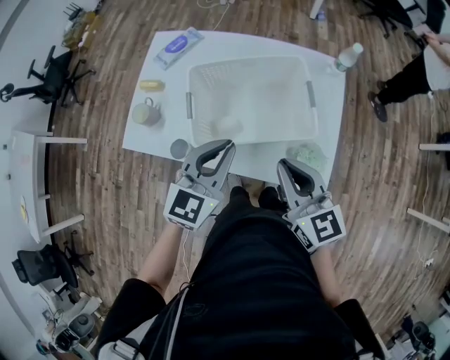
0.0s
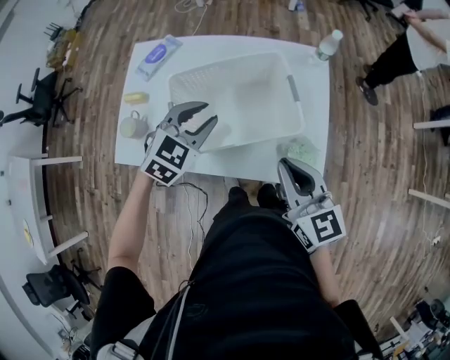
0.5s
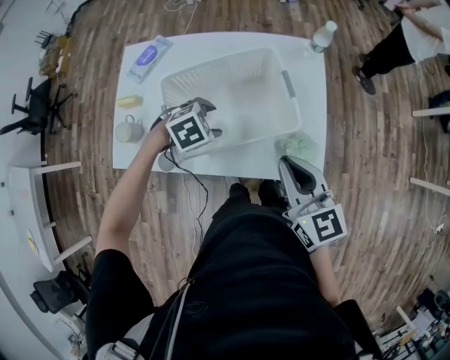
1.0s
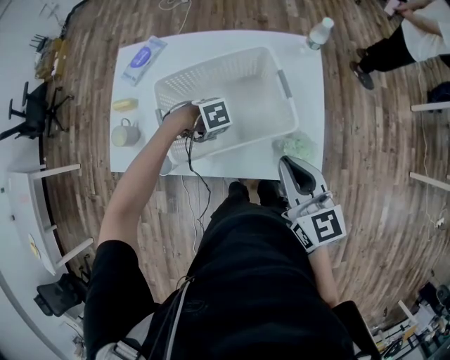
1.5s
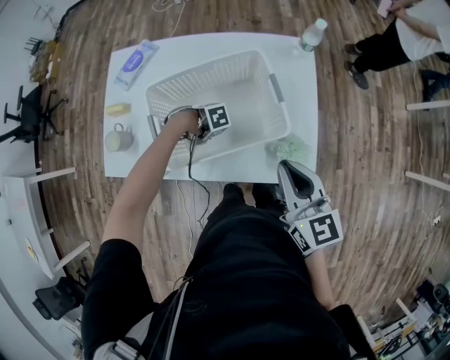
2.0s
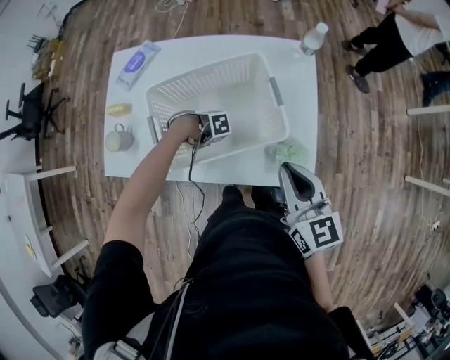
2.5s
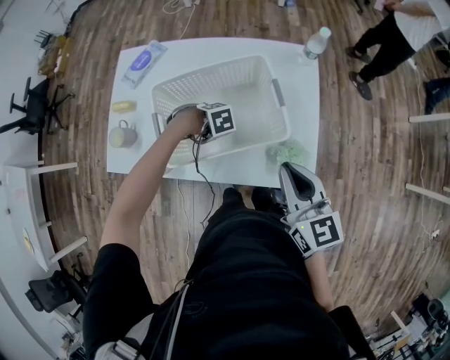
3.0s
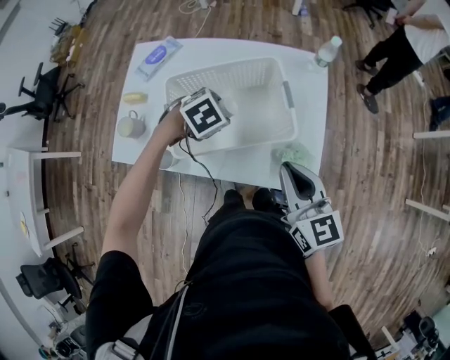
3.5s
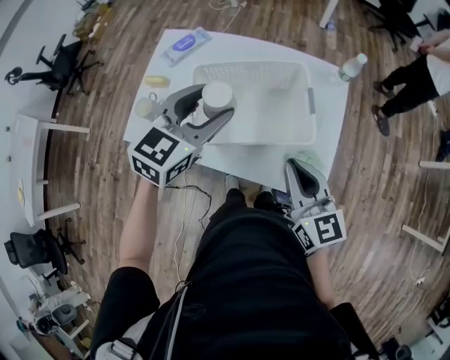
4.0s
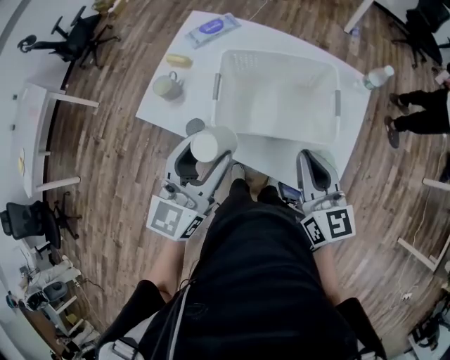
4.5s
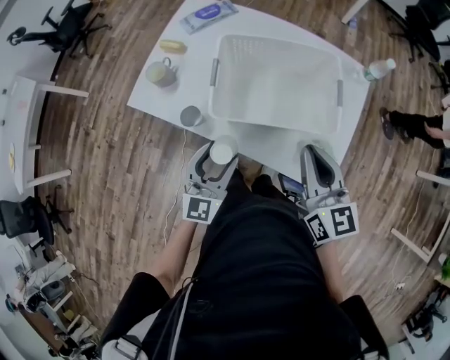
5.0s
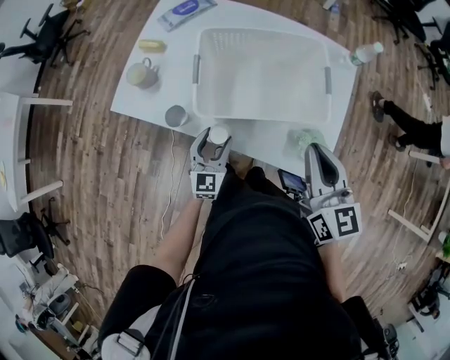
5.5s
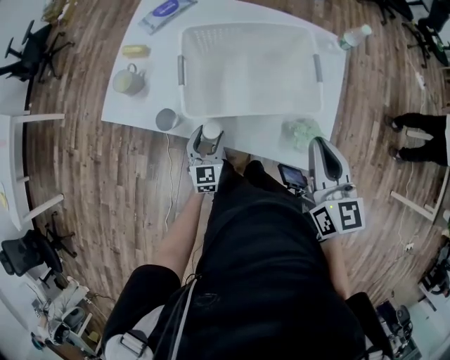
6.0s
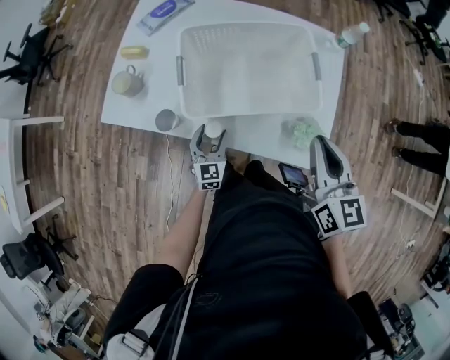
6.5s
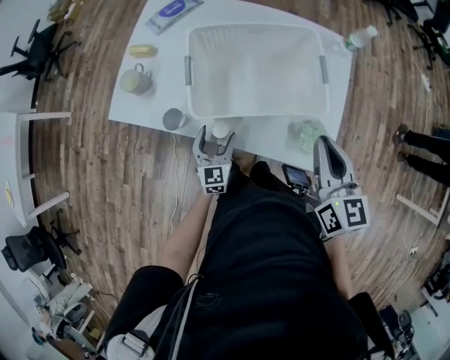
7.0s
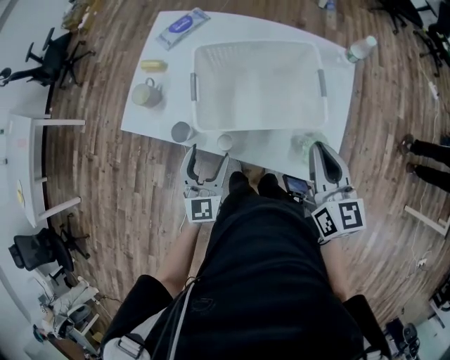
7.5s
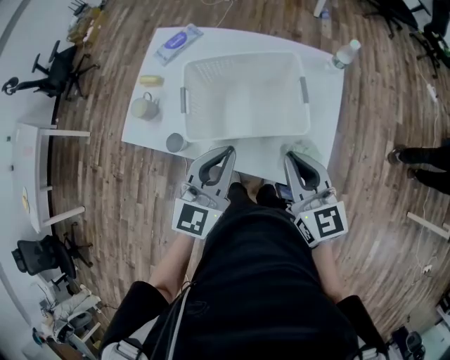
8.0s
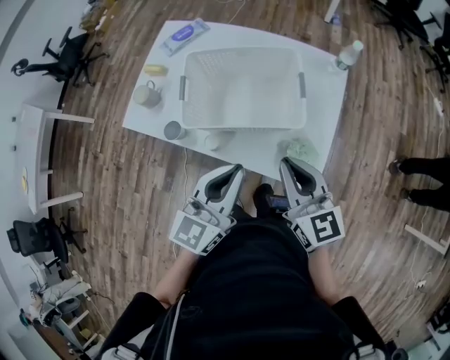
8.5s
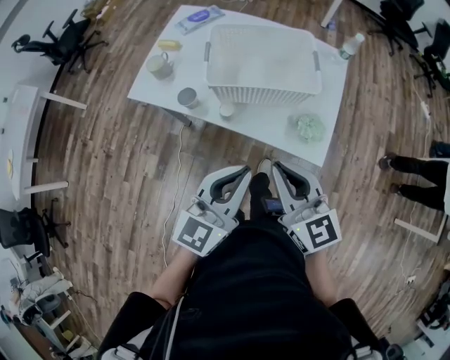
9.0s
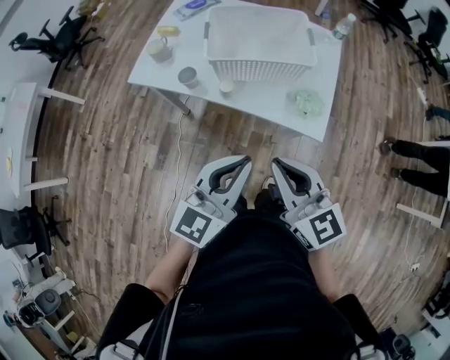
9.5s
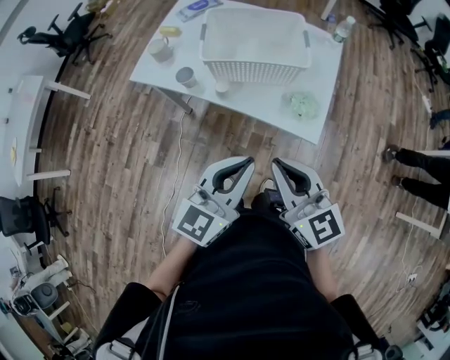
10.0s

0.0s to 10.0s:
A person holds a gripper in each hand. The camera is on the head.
0.0s to 2.0s: The left gripper heads downward, covering some 30 cm, tips its fingers downward by roughly 50 degrees, and opens its fingers; the right gripper changes place by some 5 cm.
2.0s to 4.0s: The left gripper is displaced upward by about 35 cm, and points its fingers some 50 degrees further upward.
4.0s to 6.0s: The left gripper travels downward by roughly 30 cm, and turns by roughly 30 degrees.
6.0s to 8.0s: The left gripper goes roughly 30 cm upward, changes its angle by some 20 degrees, and closes its fingers.
8.0s to 10.0s: The two grippers go approximately 25 cm backward.

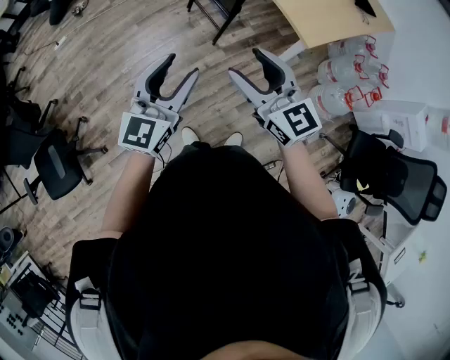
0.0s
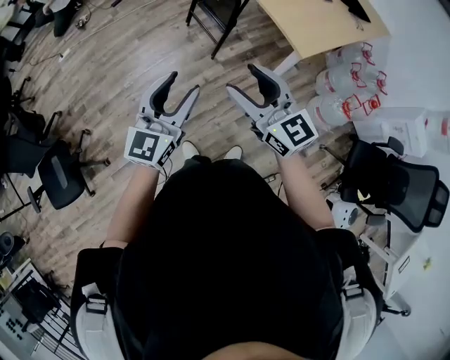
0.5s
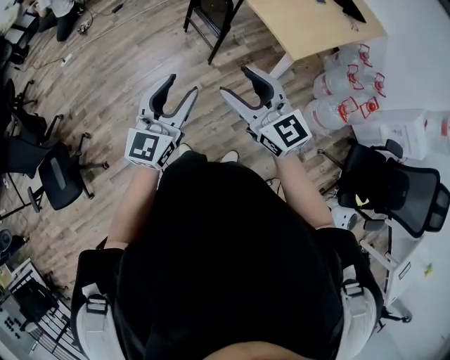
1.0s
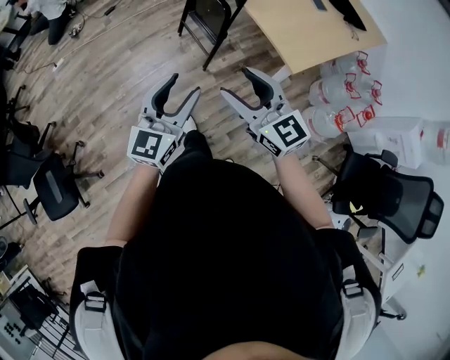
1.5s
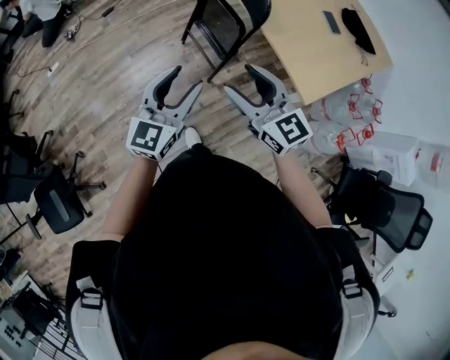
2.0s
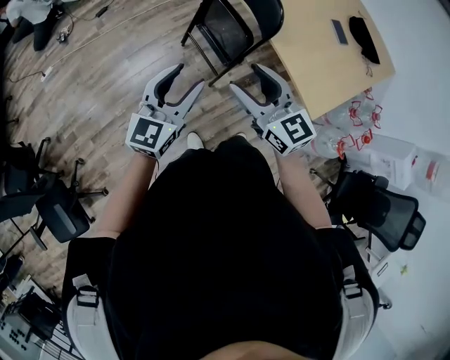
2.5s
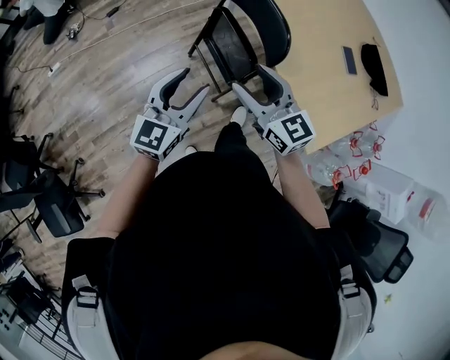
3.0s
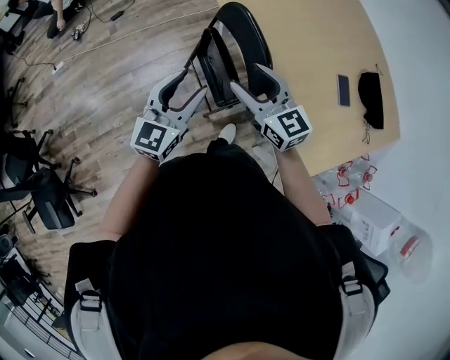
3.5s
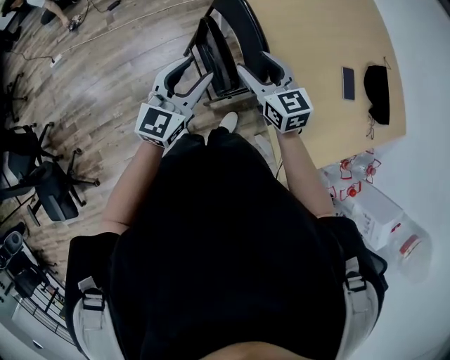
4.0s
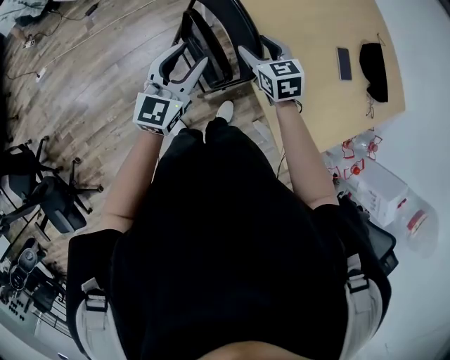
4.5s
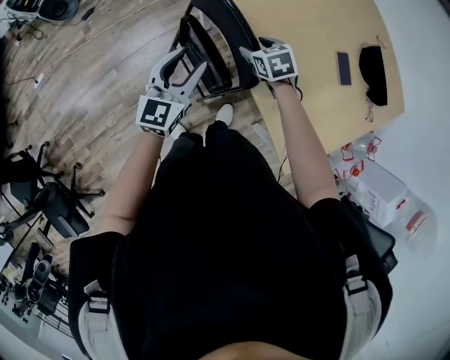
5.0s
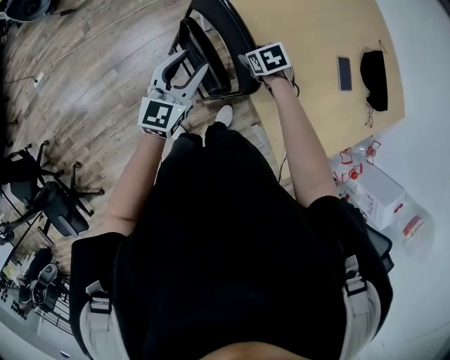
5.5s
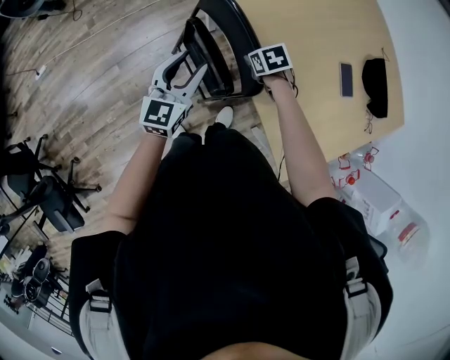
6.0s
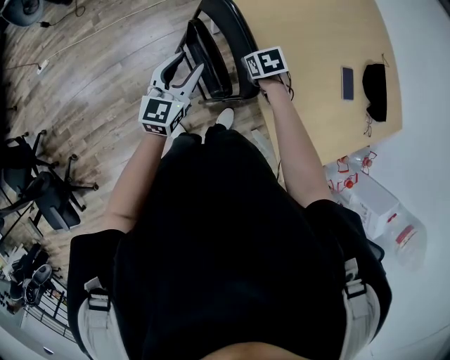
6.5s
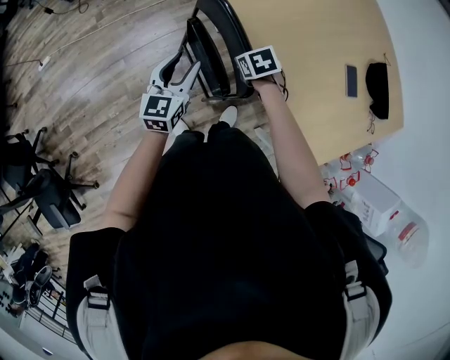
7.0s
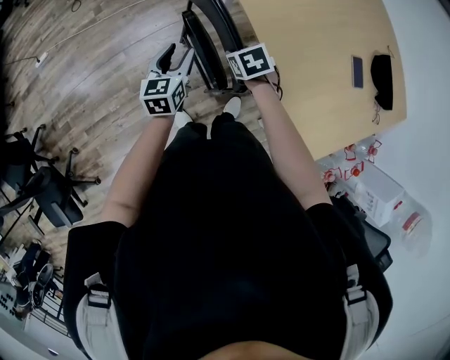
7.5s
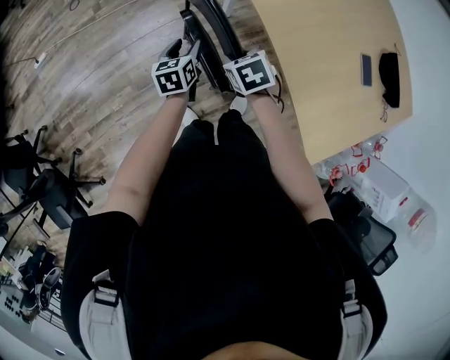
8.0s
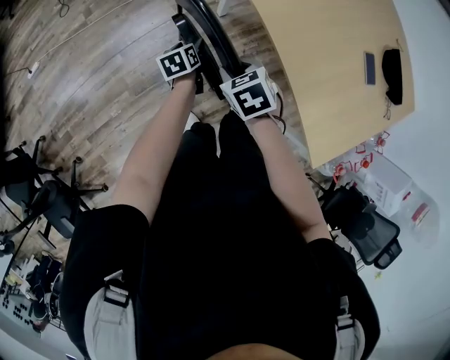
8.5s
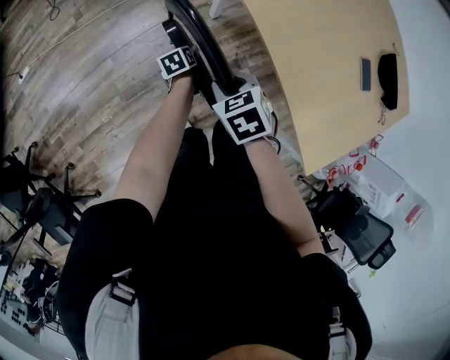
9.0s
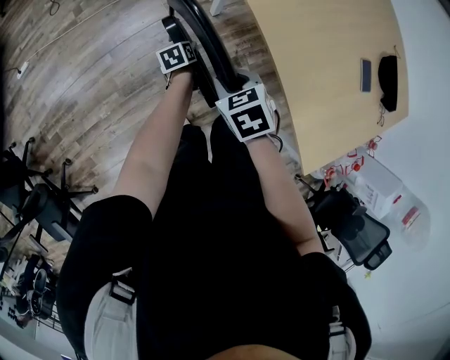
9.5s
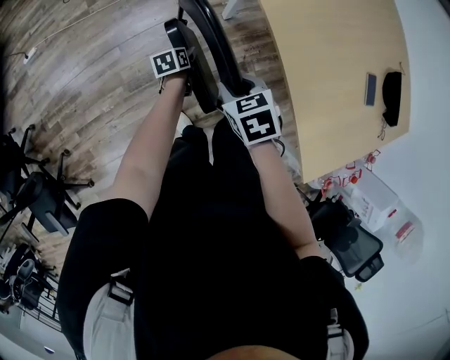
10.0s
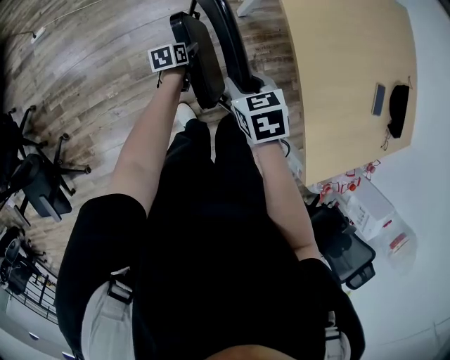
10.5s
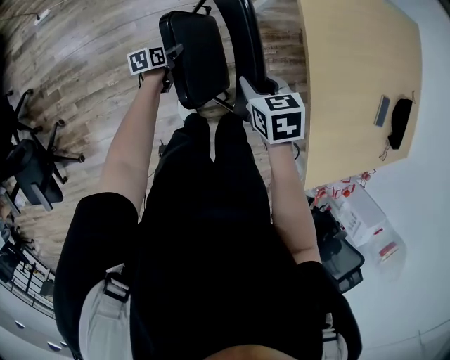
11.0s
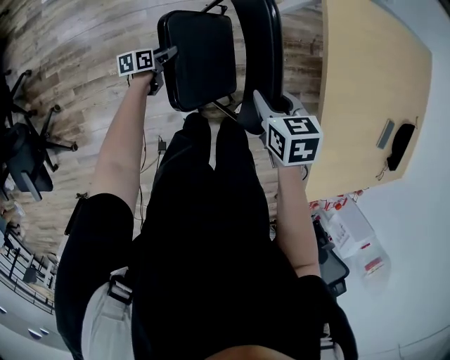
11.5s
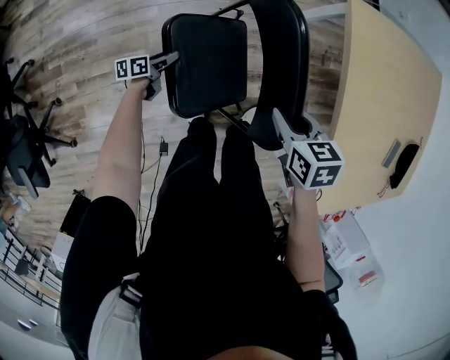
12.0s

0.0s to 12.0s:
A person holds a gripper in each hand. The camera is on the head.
0.0s to 2.0s: Both grippers travel together forward, roughly 25 cm.
2.0s to 4.0s: The two grippers travel together, forward, approximately 50 cm.
4.0s to 6.0s: The right gripper is displaced downward and forward by roughly 25 cm, points its fingers about 50 degrees further downward, and closes. The left gripper moves forward and downward, roughly 10 cm.
6.0s to 8.0s: The left gripper heads to the left and downward, covering roughly 25 cm, and rotates about 40 degrees, while the right gripper is displaced to the left by roughly 25 cm.
8.0s to 10.0s: The left gripper travels downward by roughly 20 cm, and changes its angle by approximately 30 degrees.
10.0s to 12.0s: The left gripper travels to the left and downward by approximately 30 cm, and changes its angle by some 20 degrees, while the right gripper shifts roughly 10 cm downward and to the left.

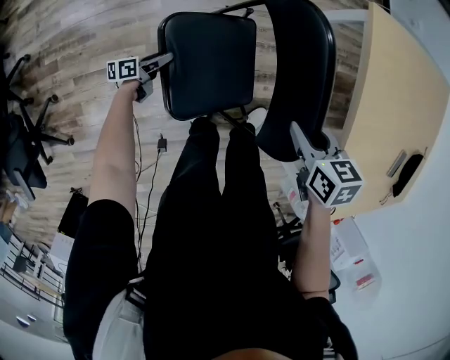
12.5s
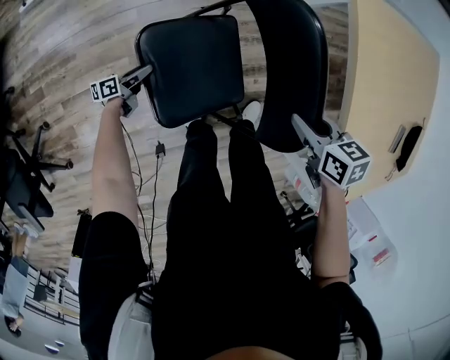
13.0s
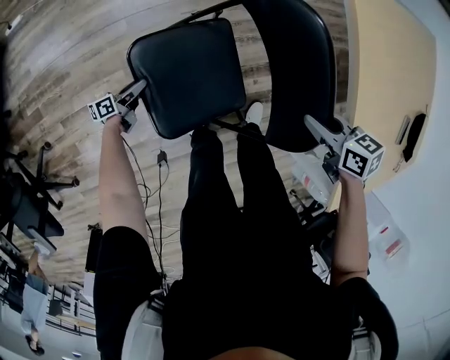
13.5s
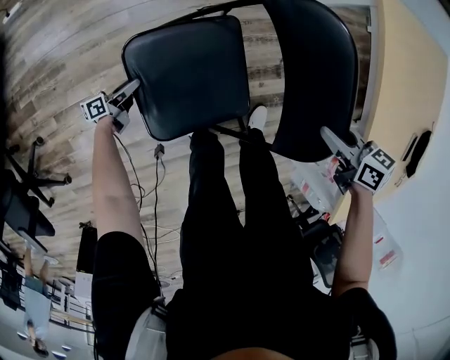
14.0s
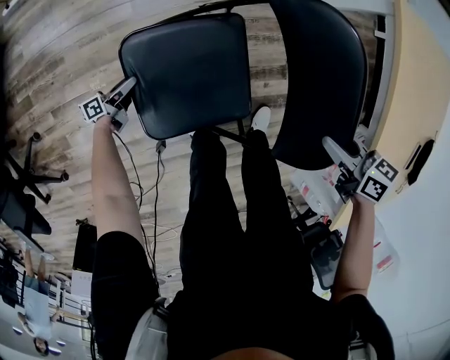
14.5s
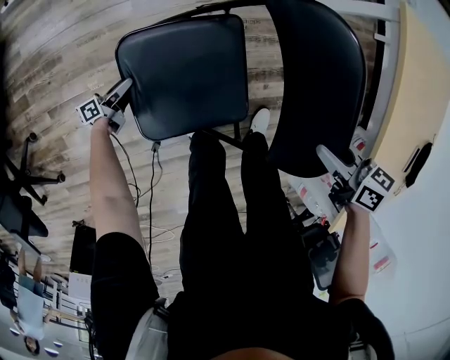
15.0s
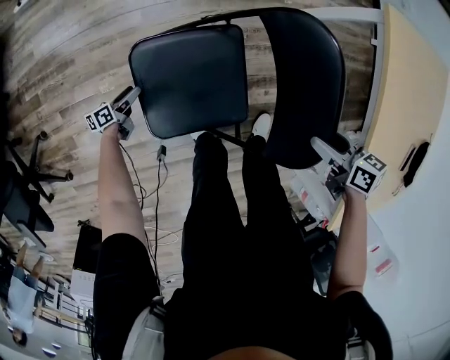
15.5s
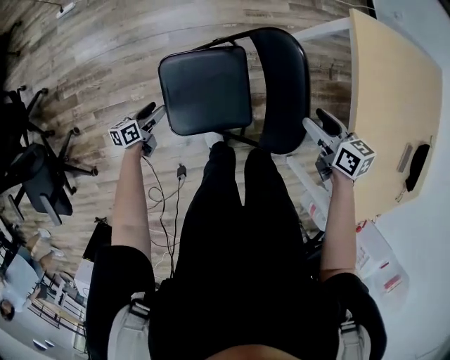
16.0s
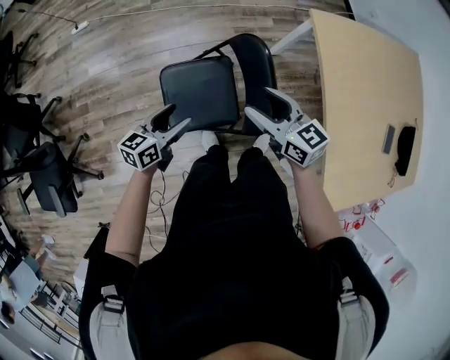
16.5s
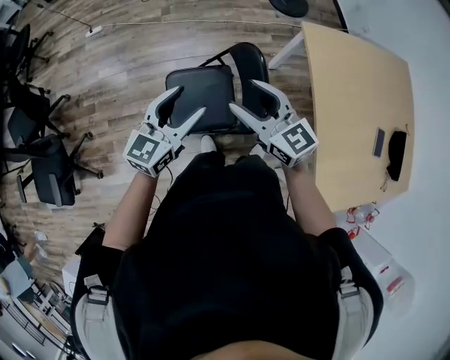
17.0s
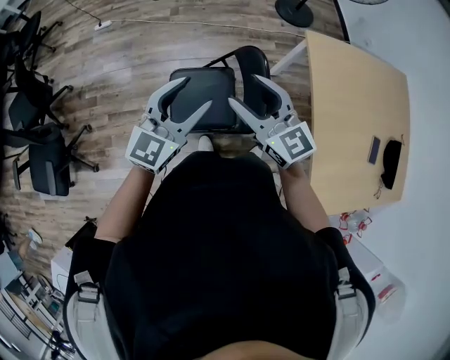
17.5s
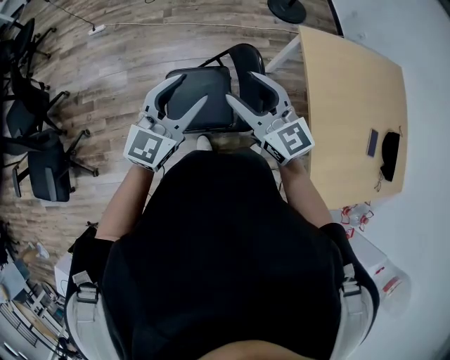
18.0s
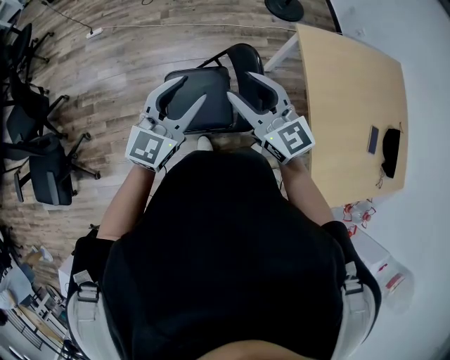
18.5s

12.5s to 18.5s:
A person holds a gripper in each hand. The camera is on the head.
12.5s to 14.5s: The right gripper shifts some 10 cm downward; the left gripper goes about 15 cm downward and to the left.
14.5s to 16.5s: The right gripper goes some 30 cm upward and to the left, swivels about 40 degrees, and opens its fingers. Meanwhile the left gripper moves upward, approximately 50 cm, and rotates around the line of its fingers by approximately 40 degrees, clockwise from behind.
16.5s to 18.5s: The grippers both shift upward by some 20 cm. The left gripper rotates about 40 degrees. The right gripper turns by approximately 30 degrees.
